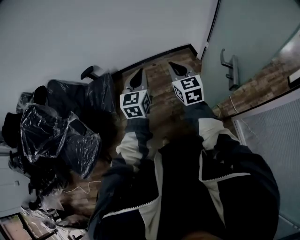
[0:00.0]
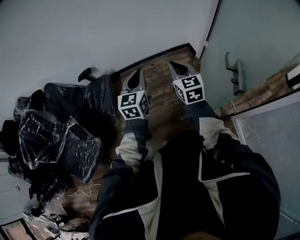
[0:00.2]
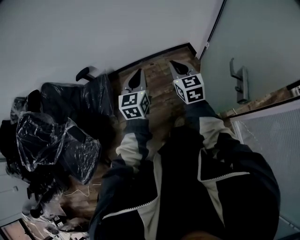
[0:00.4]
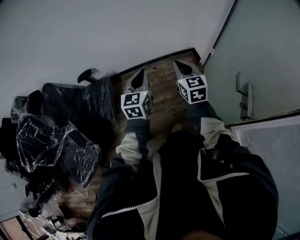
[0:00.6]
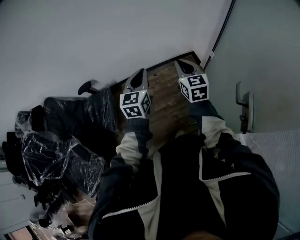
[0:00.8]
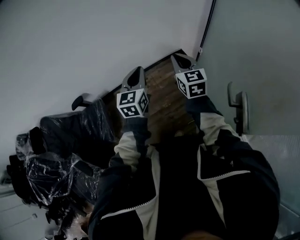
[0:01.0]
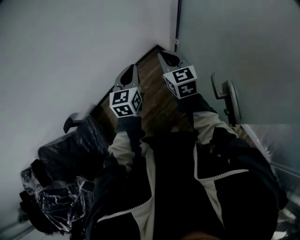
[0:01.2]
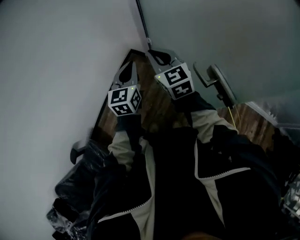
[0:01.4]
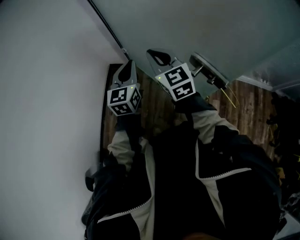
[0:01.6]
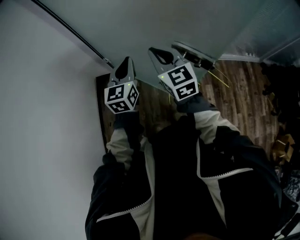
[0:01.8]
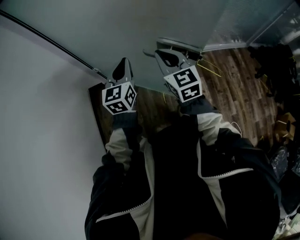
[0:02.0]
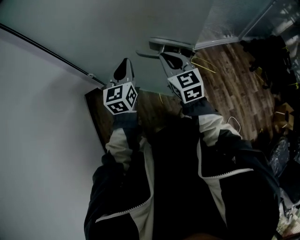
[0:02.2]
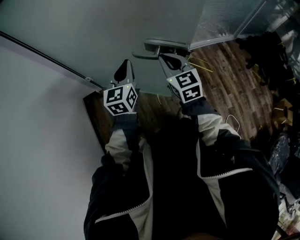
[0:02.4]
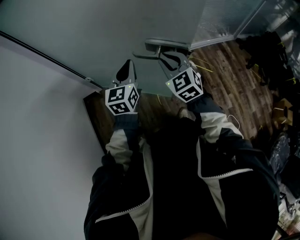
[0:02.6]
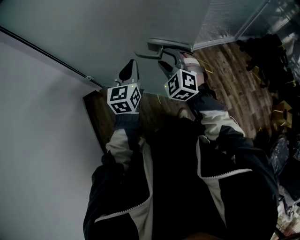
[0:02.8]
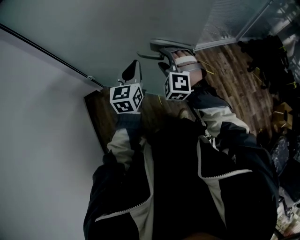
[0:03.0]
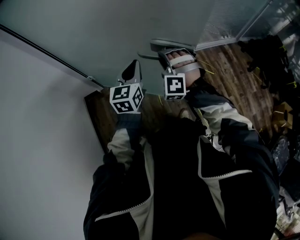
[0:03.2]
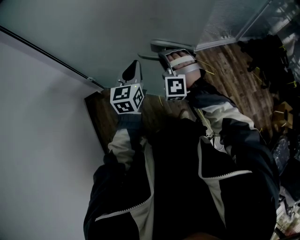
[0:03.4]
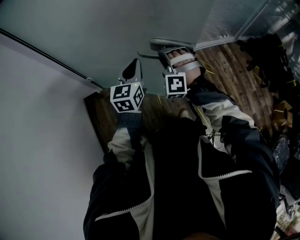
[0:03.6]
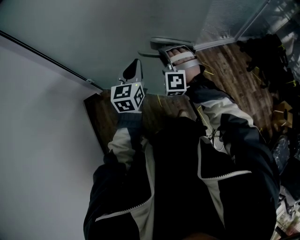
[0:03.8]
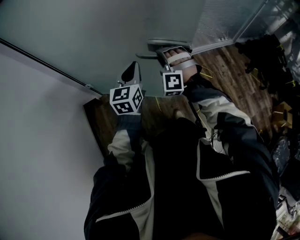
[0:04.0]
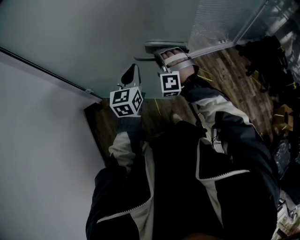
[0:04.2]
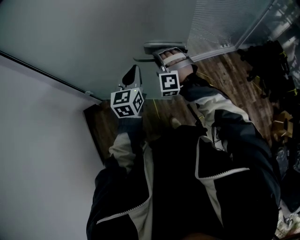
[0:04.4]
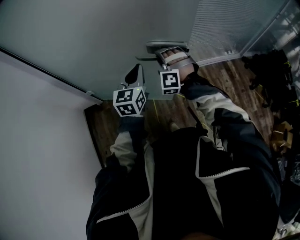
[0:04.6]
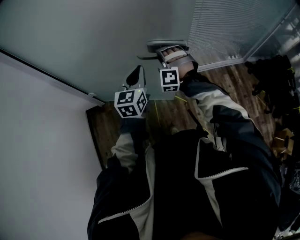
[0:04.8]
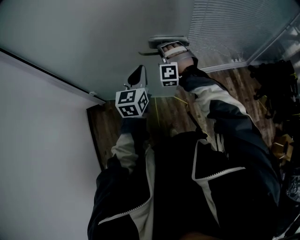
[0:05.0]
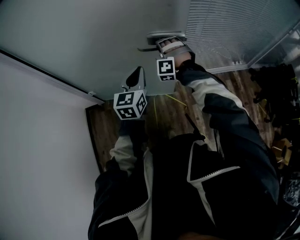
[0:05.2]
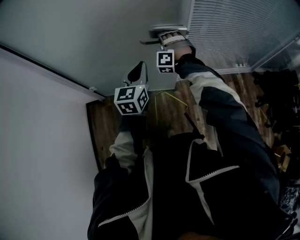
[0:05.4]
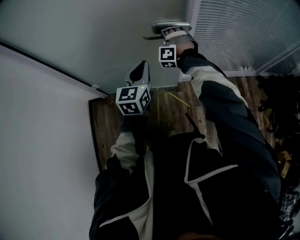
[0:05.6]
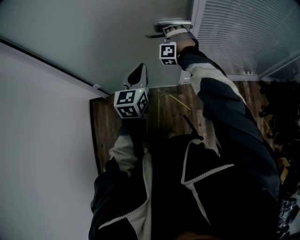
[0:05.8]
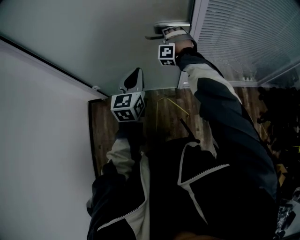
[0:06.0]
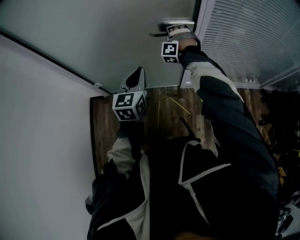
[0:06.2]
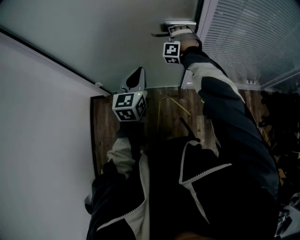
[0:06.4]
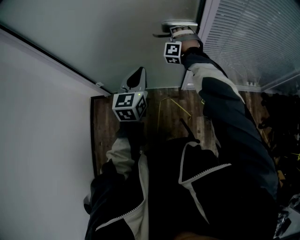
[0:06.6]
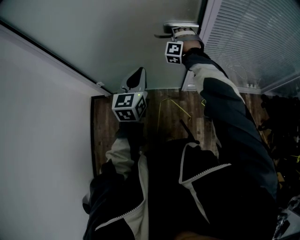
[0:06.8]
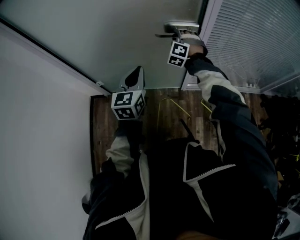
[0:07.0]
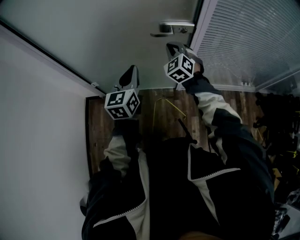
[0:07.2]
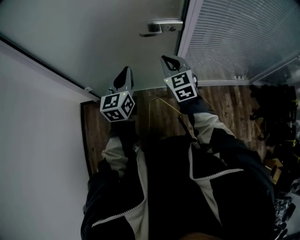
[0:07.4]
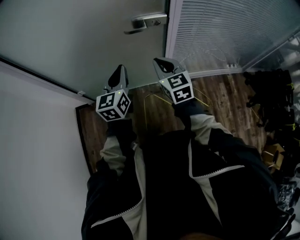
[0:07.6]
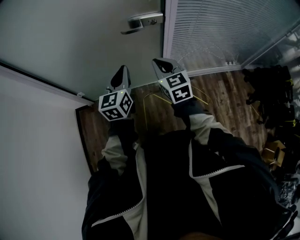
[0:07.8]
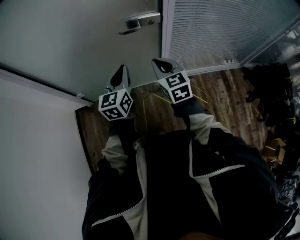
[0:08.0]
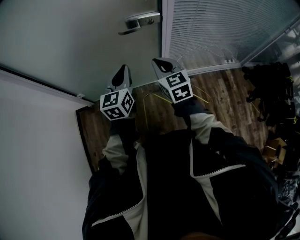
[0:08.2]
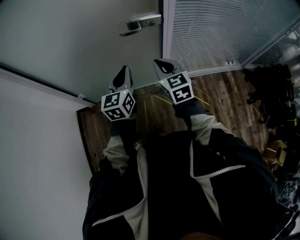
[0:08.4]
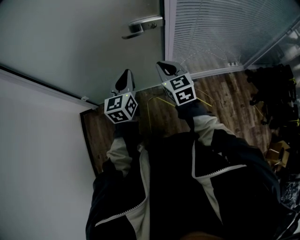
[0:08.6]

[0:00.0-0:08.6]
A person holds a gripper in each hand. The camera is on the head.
0:00.0 to 0:01.4: The left gripper ends up some 40 cm from where it was, and turns by about 40 degrees. Meanwhile the right gripper moves about 30 cm, and turns by about 30 degrees.
0:01.4 to 0:02.8: The right gripper moves approximately 25 cm, swivels approximately 60 degrees, and opens; the left gripper shifts by about 20 cm, and turns by about 50 degrees.
0:02.8 to 0:04.4: The two grippers go approximately 15 cm forward. The right gripper rotates approximately 40 degrees.
0:04.4 to 0:05.8: The left gripper goes approximately 15 cm forward. Meanwhile the right gripper shifts some 30 cm forward.
0:05.8 to 0:07.2: The left gripper heads to the left, covering some 5 cm. The right gripper moves backward, about 10 cm, rolls clockwise, seen from behind, by roughly 50 degrees, and closes up.
0:07.2 to 0:08.6: The left gripper shifts approximately 5 cm to the right, while the right gripper goes roughly 15 cm backward and to the right, and rolls clockwise, seen from behind, by about 40 degrees.

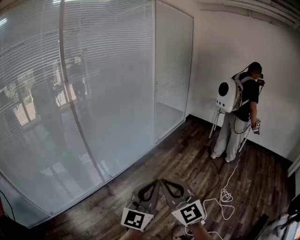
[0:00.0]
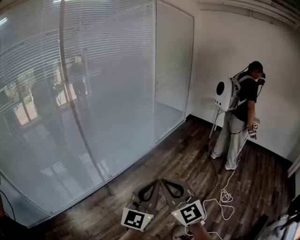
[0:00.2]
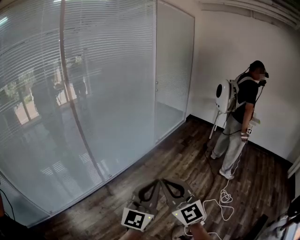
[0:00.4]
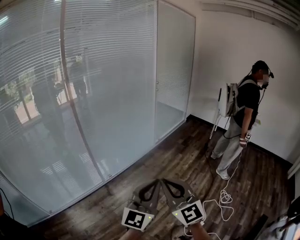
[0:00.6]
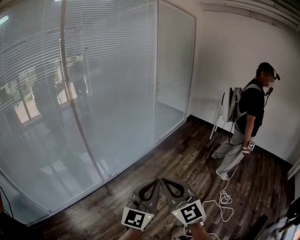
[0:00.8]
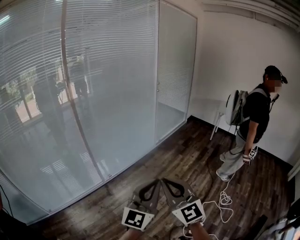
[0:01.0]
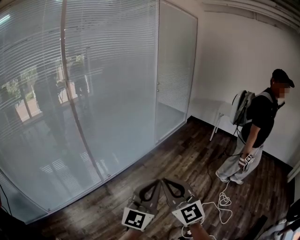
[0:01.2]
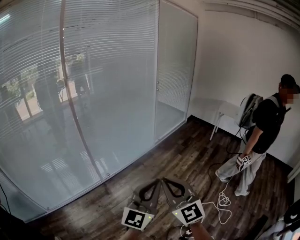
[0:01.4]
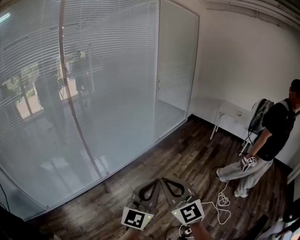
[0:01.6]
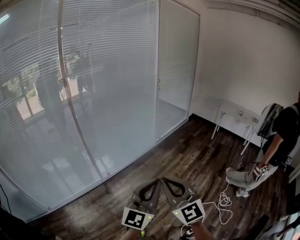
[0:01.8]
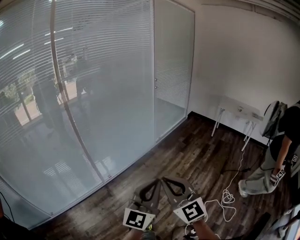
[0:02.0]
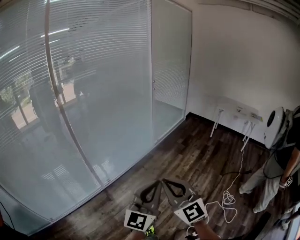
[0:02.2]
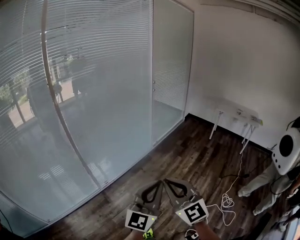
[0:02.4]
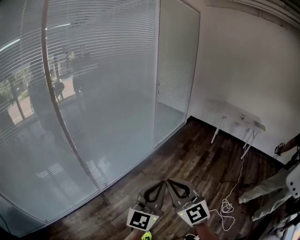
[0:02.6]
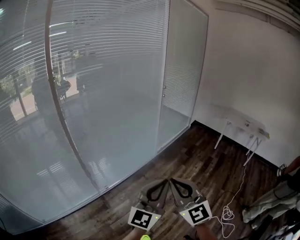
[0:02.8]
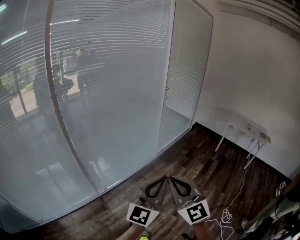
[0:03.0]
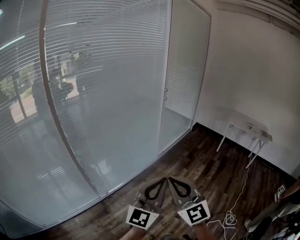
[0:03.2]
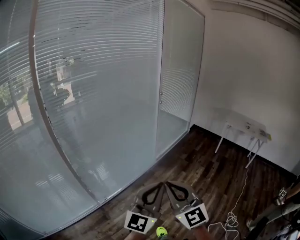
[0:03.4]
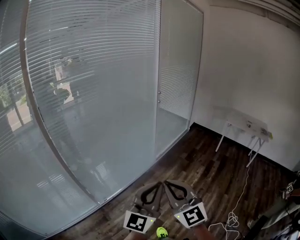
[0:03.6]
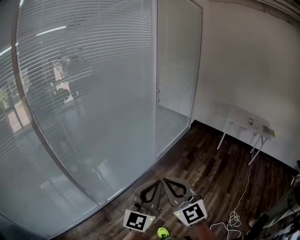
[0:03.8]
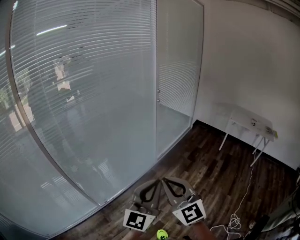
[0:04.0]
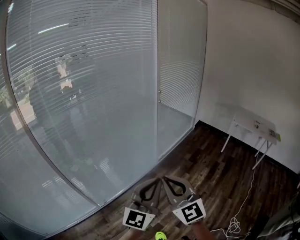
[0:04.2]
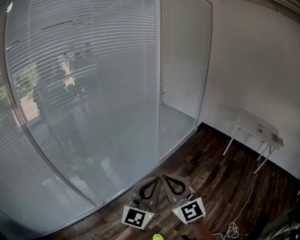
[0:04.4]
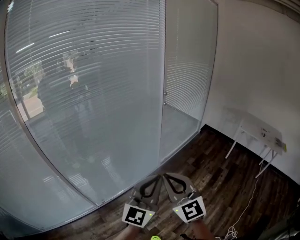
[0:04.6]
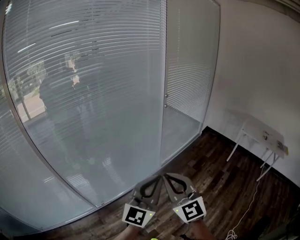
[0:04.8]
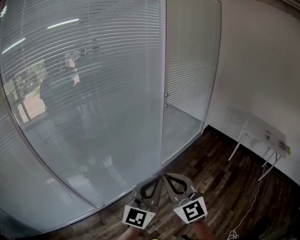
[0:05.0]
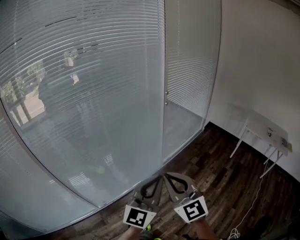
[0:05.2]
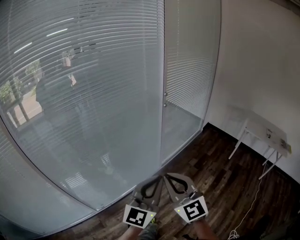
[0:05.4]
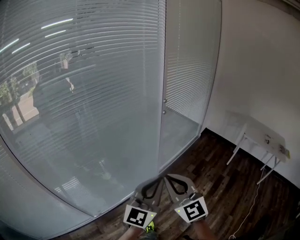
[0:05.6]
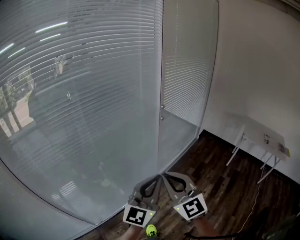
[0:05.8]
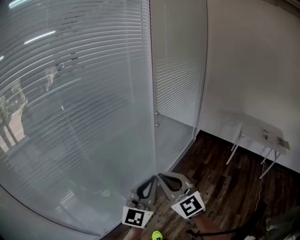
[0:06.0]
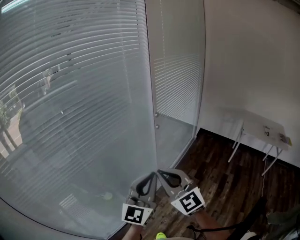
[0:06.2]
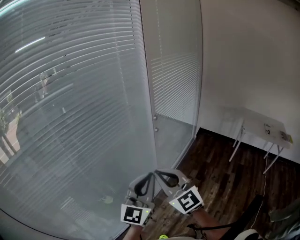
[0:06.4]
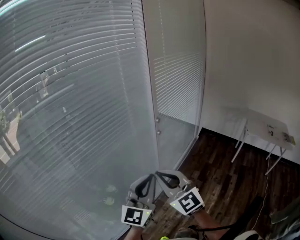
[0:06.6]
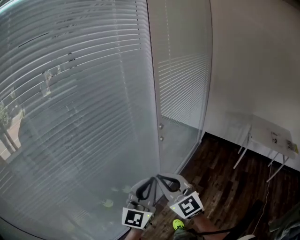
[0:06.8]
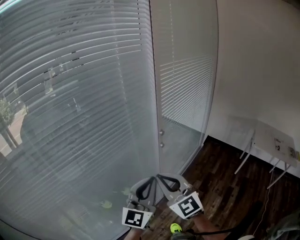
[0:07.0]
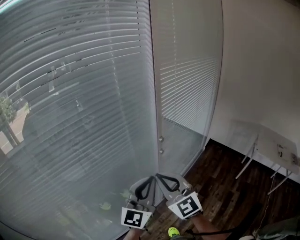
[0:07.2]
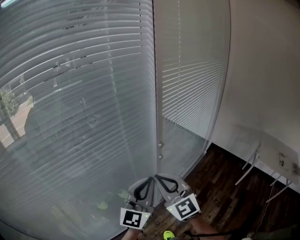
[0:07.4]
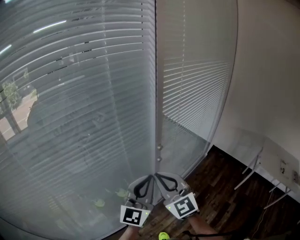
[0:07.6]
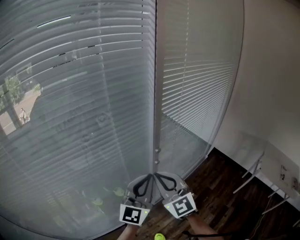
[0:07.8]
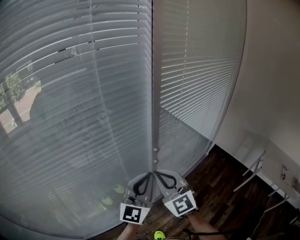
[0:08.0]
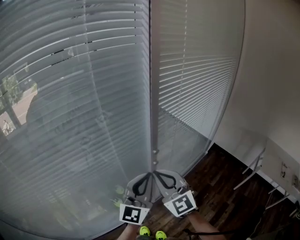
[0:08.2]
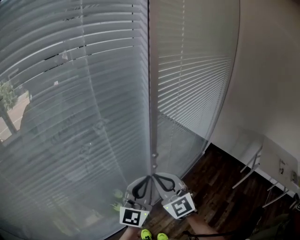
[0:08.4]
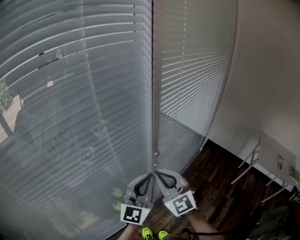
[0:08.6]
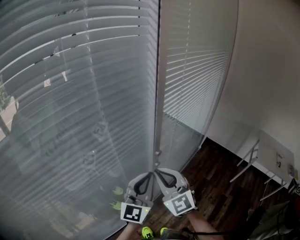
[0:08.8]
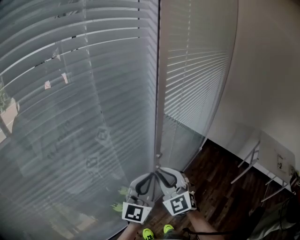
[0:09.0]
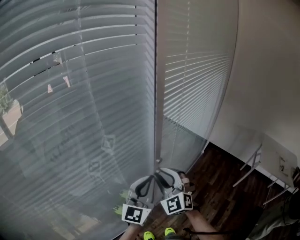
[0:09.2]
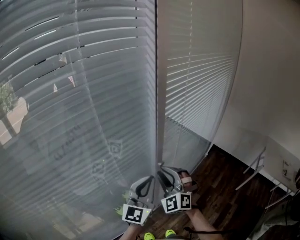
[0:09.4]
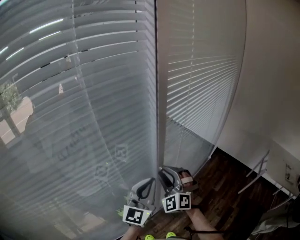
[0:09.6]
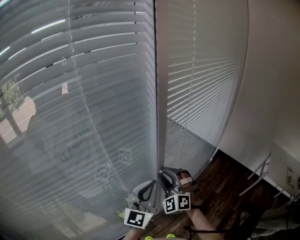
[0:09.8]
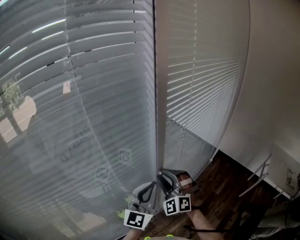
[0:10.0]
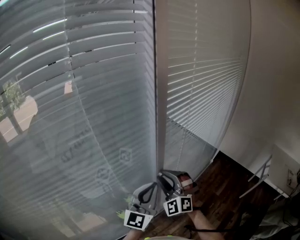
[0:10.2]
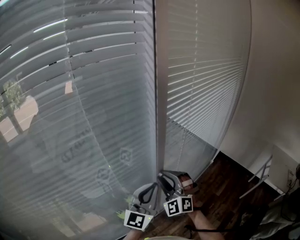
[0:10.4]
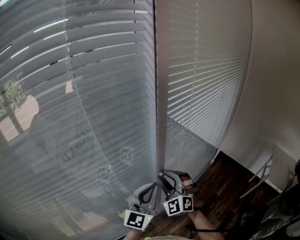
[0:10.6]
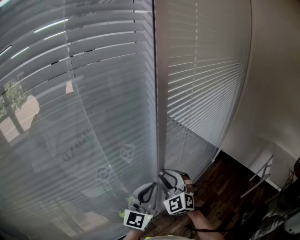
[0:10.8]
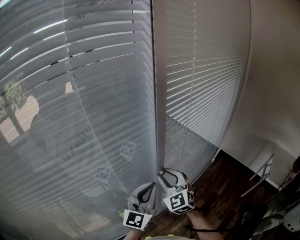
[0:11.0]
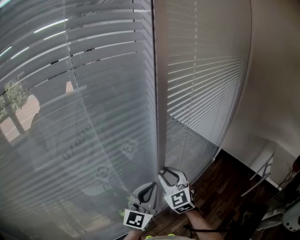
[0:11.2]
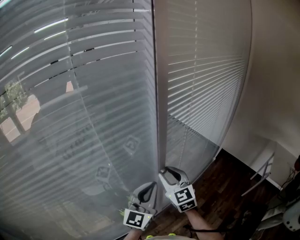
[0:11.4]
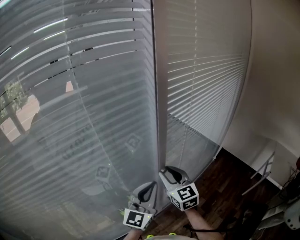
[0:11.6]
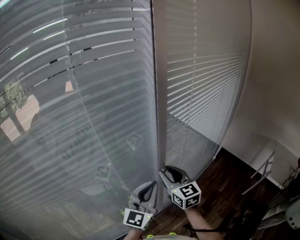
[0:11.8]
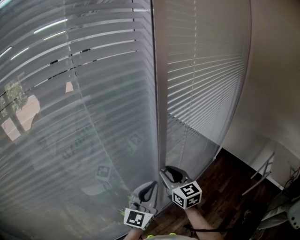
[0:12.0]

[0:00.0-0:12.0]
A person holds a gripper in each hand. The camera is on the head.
0:00.0 to 0:01.6: The right gripper moves about 5 cm; the left gripper changes place by about 5 cm.
0:01.6 to 0:03.0: The grippers both shift forward by some 30 cm.
0:03.0 to 0:04.4: Both grippers travel together forward, some 25 cm.
0:04.4 to 0:06.0: The grippers both shift forward by roughly 30 cm.
0:06.0 to 0:07.6: The two grippers go approximately 30 cm forward.
0:07.6 to 0:09.0: Both grippers travel together forward, approximately 10 cm.
0:09.0 to 0:10.4: The right gripper goes some 10 cm forward, rotates some 20 degrees, and opens its fingers.
0:10.4 to 0:12.0: The right gripper rolls clockwise, seen from behind, by about 60 degrees.

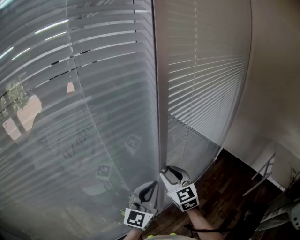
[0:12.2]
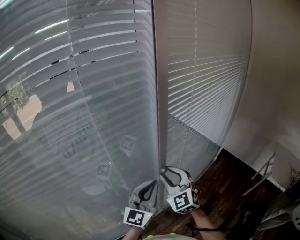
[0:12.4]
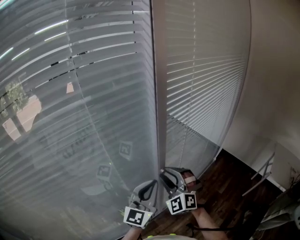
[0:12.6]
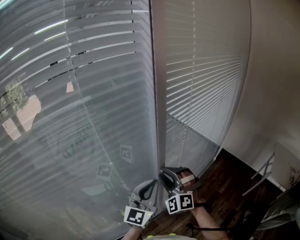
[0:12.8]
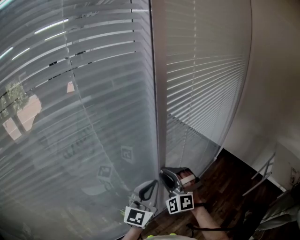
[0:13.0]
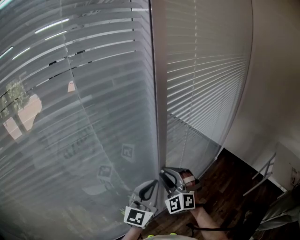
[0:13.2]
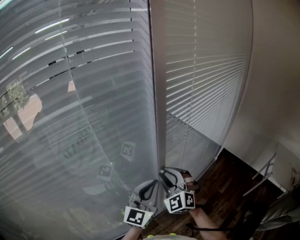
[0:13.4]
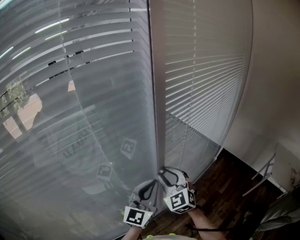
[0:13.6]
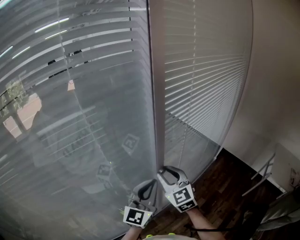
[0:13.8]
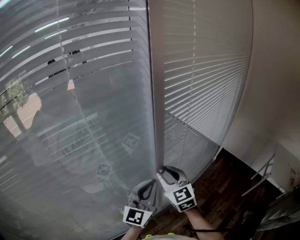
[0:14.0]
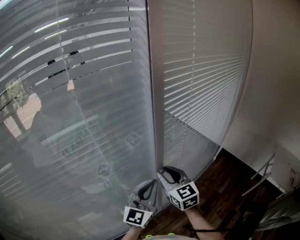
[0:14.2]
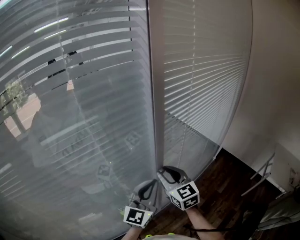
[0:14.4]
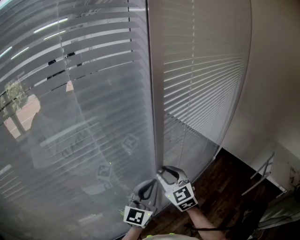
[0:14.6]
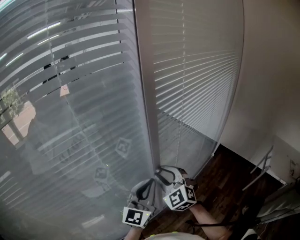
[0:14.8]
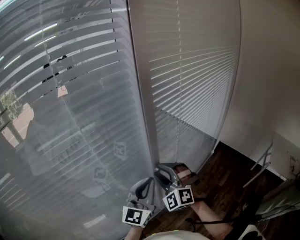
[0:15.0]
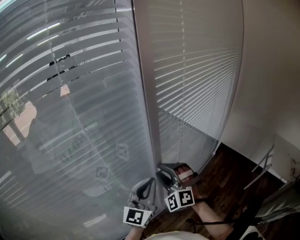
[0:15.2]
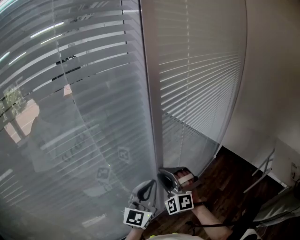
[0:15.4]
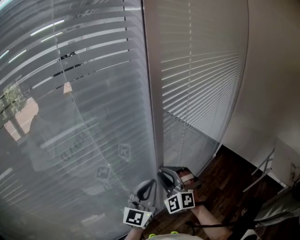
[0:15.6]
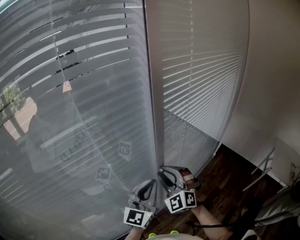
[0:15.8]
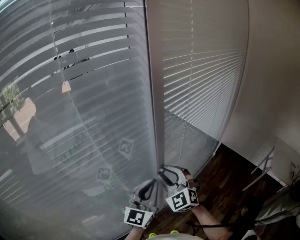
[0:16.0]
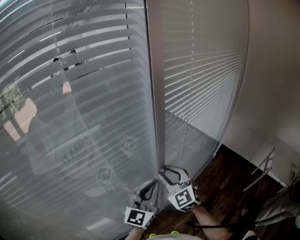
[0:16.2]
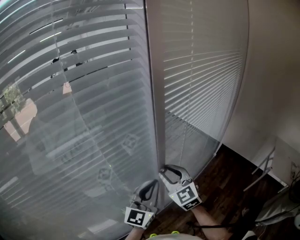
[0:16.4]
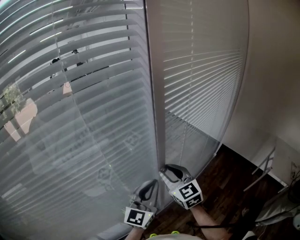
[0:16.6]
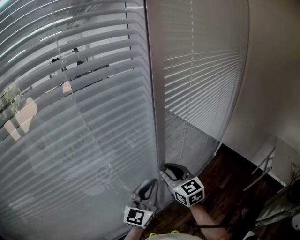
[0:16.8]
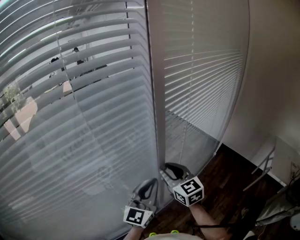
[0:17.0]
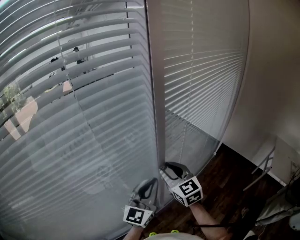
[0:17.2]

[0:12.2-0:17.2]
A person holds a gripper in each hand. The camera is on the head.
0:13.8 to 0:15.6: The right gripper rotates around the line of its fingers by some 40 degrees, counterclockwise from behind.
0:15.6 to 0:17.2: The right gripper rotates around the line of its fingers by about 50 degrees, clockwise from behind.
